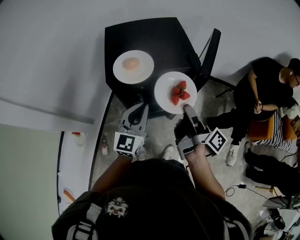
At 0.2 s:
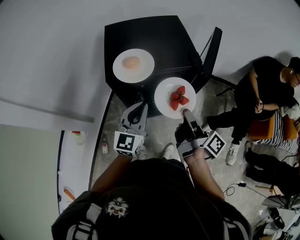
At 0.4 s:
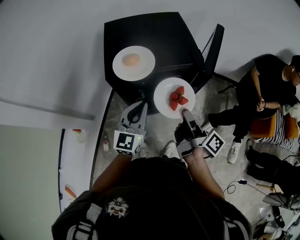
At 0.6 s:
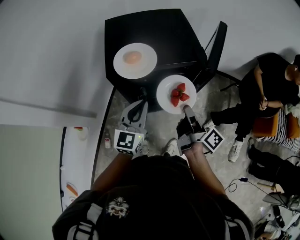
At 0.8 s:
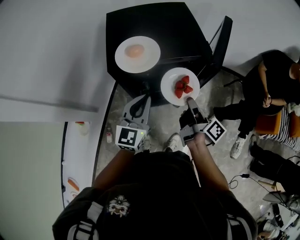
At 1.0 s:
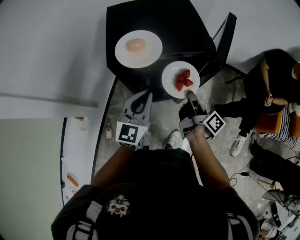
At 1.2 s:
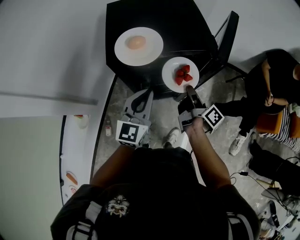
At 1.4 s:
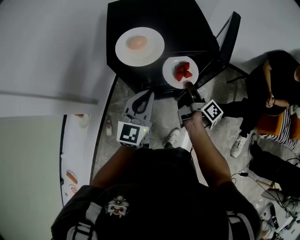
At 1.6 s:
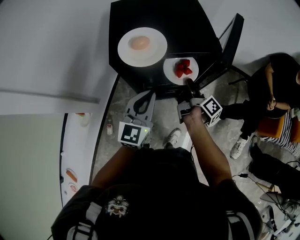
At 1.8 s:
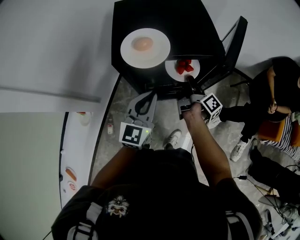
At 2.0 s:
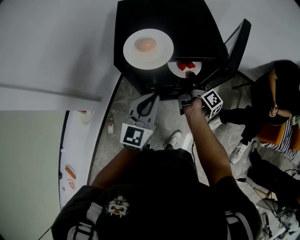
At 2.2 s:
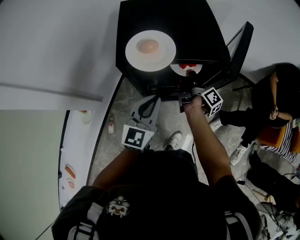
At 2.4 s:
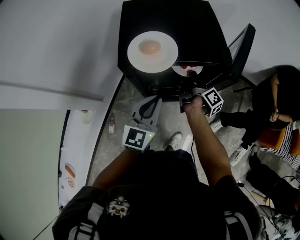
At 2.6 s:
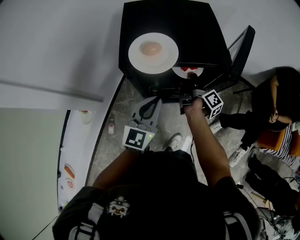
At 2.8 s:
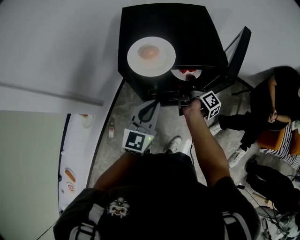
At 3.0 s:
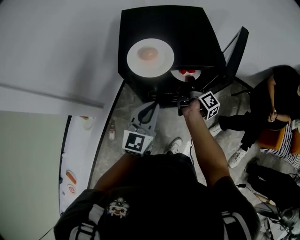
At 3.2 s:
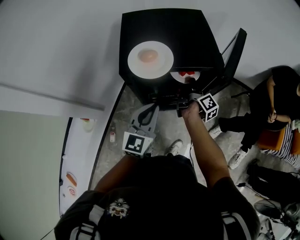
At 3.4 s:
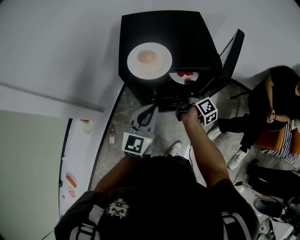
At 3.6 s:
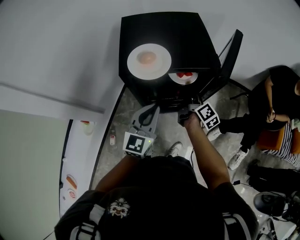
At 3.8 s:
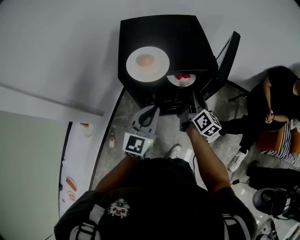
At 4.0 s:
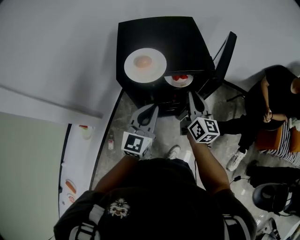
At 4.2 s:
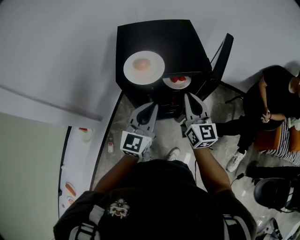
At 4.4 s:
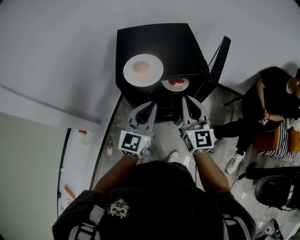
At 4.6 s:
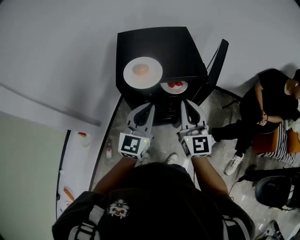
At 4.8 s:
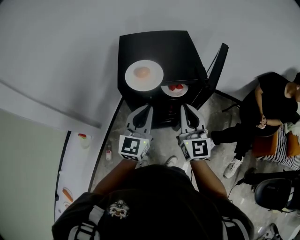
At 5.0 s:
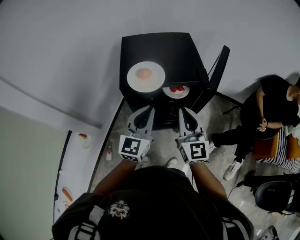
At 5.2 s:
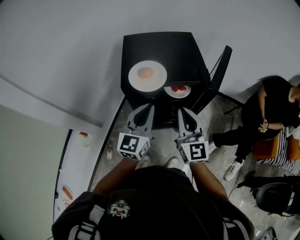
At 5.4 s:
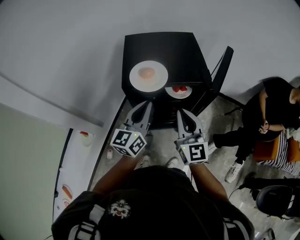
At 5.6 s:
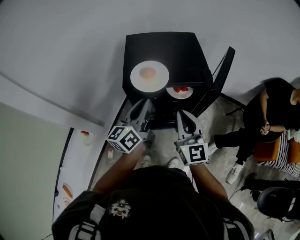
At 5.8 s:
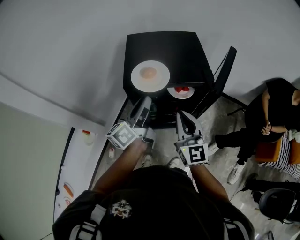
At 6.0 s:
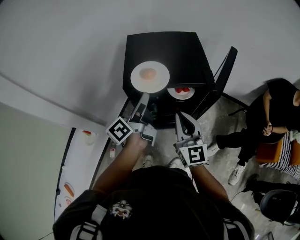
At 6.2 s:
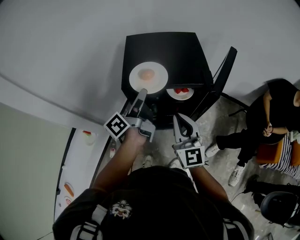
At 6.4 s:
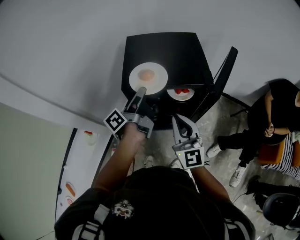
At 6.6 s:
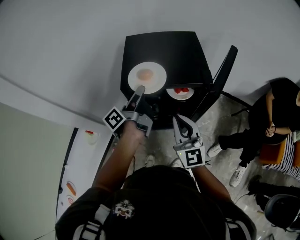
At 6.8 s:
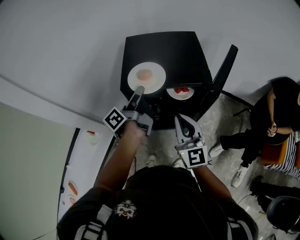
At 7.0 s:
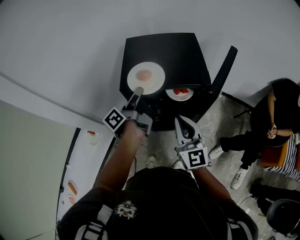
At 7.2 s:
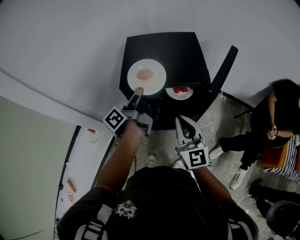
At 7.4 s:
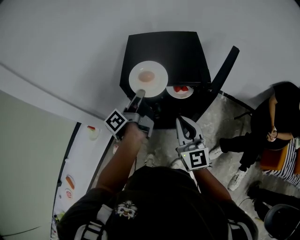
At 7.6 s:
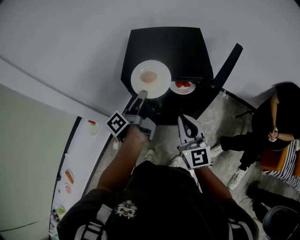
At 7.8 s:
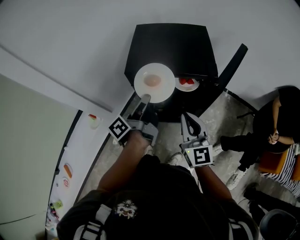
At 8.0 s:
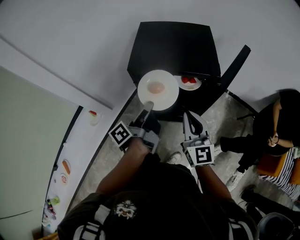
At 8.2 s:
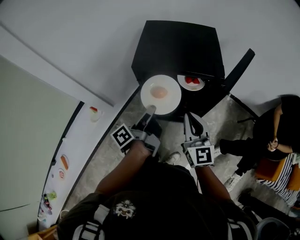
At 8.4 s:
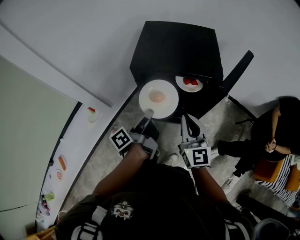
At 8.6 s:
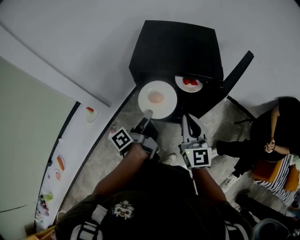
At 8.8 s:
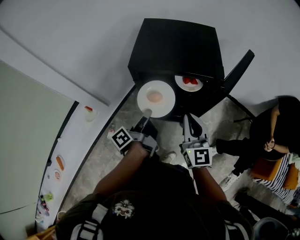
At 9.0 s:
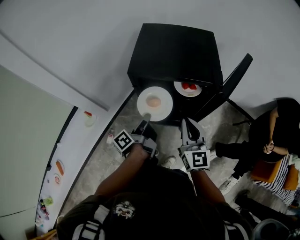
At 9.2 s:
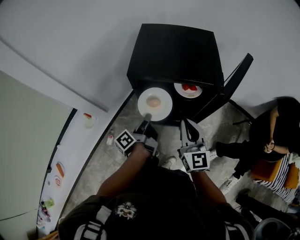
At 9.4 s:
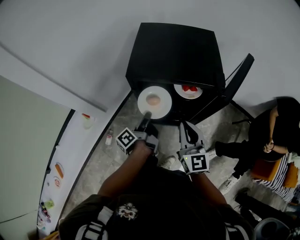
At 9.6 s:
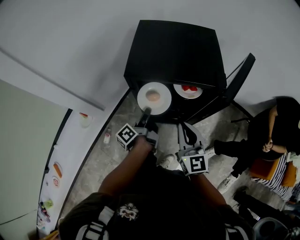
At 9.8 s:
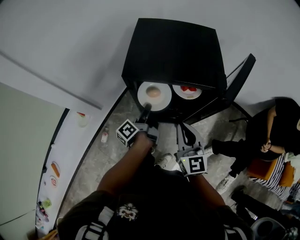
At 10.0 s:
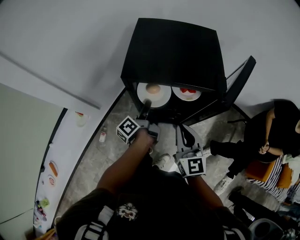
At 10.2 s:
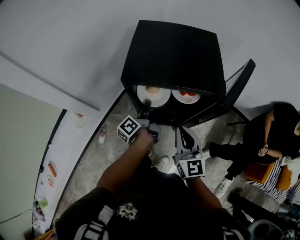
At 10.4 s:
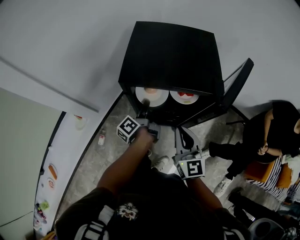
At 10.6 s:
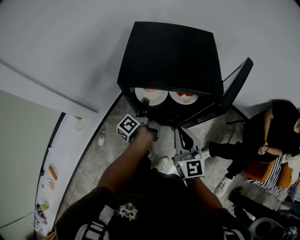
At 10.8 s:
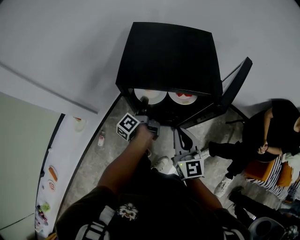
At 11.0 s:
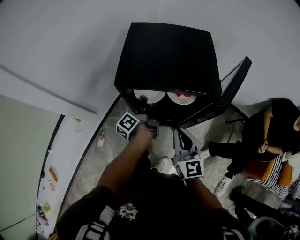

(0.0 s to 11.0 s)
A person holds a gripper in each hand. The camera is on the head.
0.0 s - 1.6 s: The right gripper is displaced downward and forward by roughly 20 cm.
1.6 s - 3.2 s: The right gripper moves forward, some 5 cm.
3.2 s - 4.8 s: The right gripper moves upward and backward, some 25 cm, and rotates around the line of its fingers by roughly 80 degrees, counterclockwise from behind; the left gripper is displaced upward by roughly 5 cm.
4.8 s - 6.2 s: The left gripper heads forward, covering about 5 cm, rolls counterclockwise, seen from behind, by about 70 degrees, and opens its fingers.
6.2 s - 7.8 s: The right gripper moves roughly 5 cm; the left gripper is displaced backward by roughly 5 cm, and closes its fingers.
7.8 s - 9.4 s: The left gripper goes about 15 cm downward; the right gripper travels downward by some 5 cm.
9.4 s - 11.0 s: The left gripper shifts some 10 cm forward.

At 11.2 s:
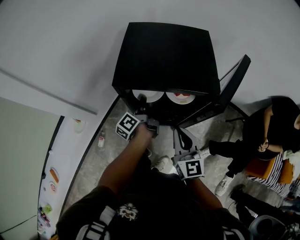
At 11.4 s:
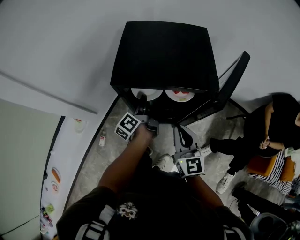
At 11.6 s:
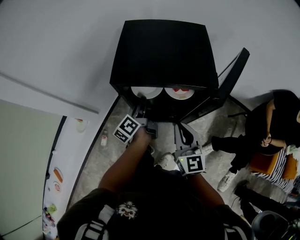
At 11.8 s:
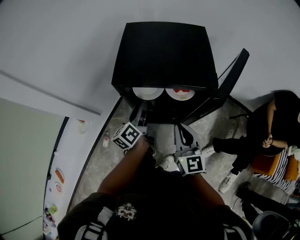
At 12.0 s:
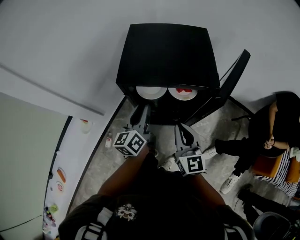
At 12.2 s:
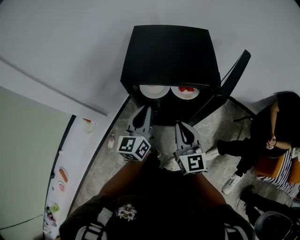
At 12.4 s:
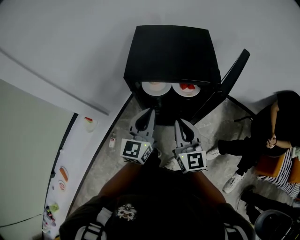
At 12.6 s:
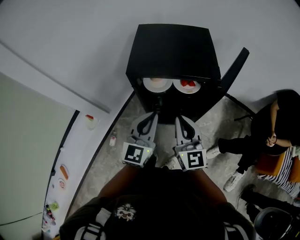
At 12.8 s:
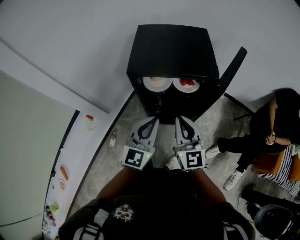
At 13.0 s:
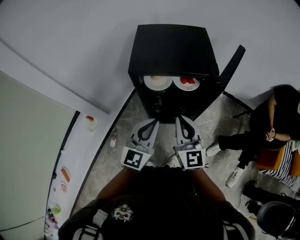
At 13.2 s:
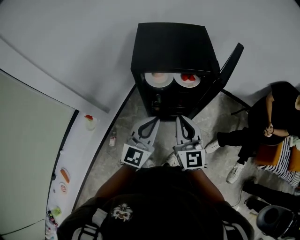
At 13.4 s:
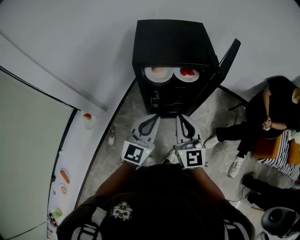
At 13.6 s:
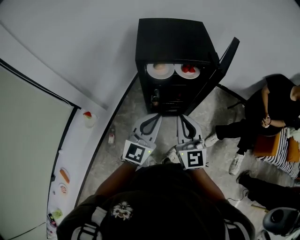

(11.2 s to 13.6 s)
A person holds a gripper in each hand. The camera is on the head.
11.2 s - 12.4 s: The left gripper is displaced upward and backward by roughly 20 cm, twists approximately 70 degrees clockwise, seen from behind, and opens, then closes again, while the right gripper changes place by about 5 cm.
12.4 s - 13.6 s: Both grippers travel together backward, approximately 10 cm. The left gripper rotates some 20 degrees.

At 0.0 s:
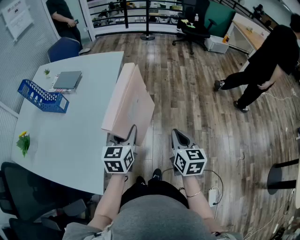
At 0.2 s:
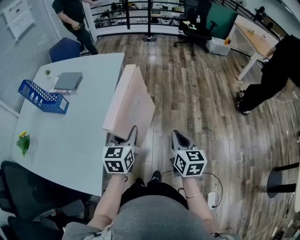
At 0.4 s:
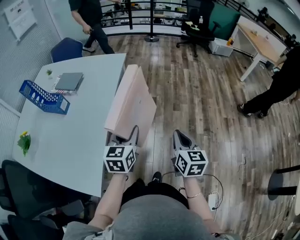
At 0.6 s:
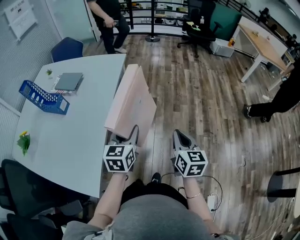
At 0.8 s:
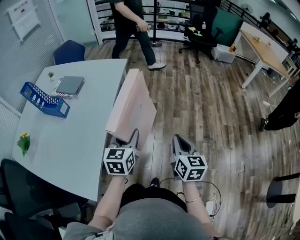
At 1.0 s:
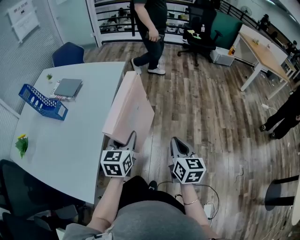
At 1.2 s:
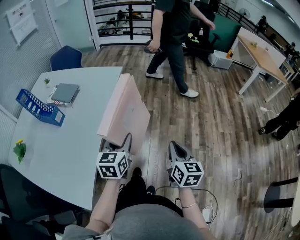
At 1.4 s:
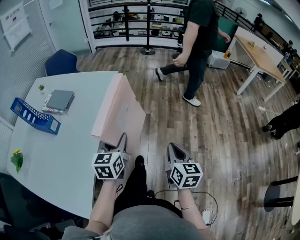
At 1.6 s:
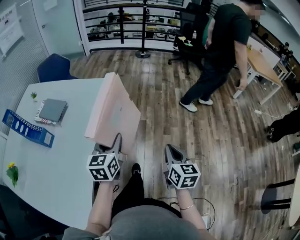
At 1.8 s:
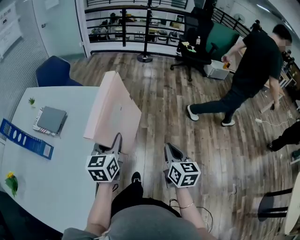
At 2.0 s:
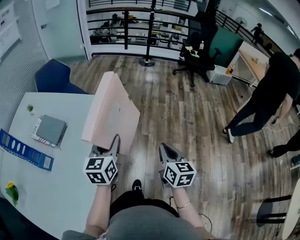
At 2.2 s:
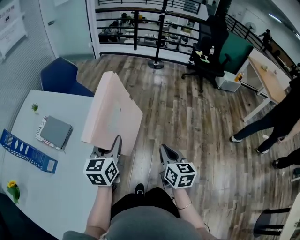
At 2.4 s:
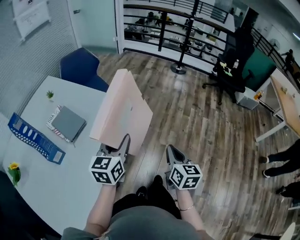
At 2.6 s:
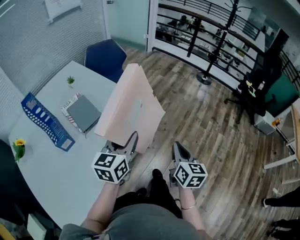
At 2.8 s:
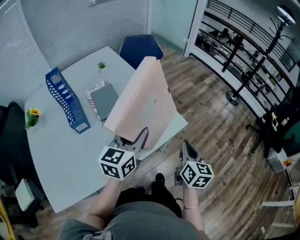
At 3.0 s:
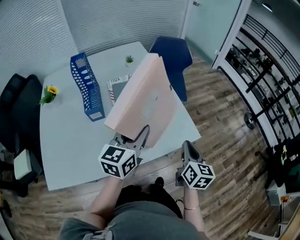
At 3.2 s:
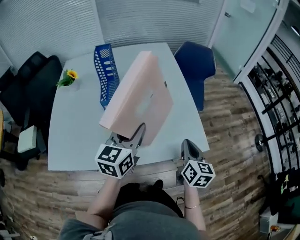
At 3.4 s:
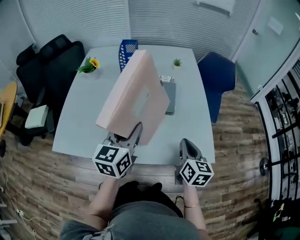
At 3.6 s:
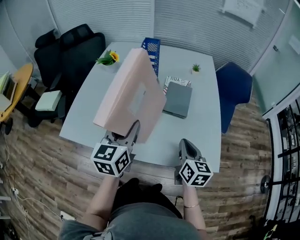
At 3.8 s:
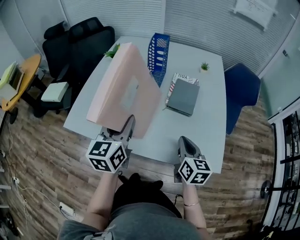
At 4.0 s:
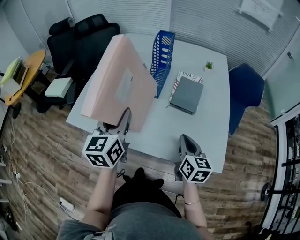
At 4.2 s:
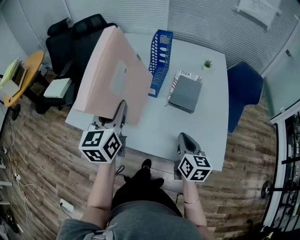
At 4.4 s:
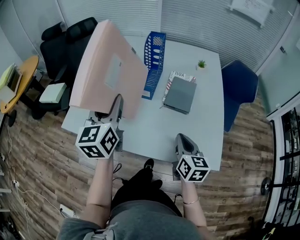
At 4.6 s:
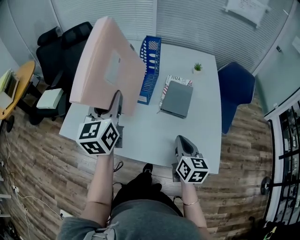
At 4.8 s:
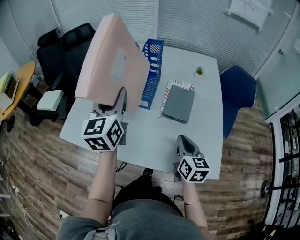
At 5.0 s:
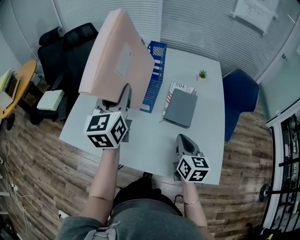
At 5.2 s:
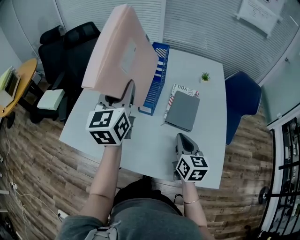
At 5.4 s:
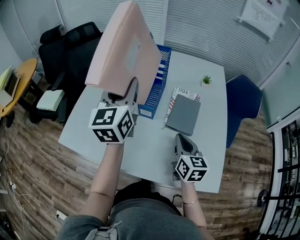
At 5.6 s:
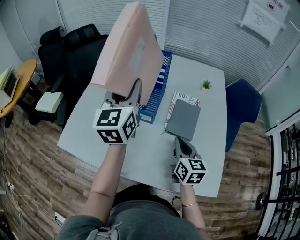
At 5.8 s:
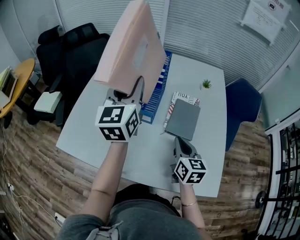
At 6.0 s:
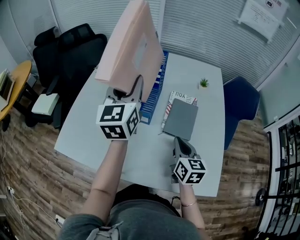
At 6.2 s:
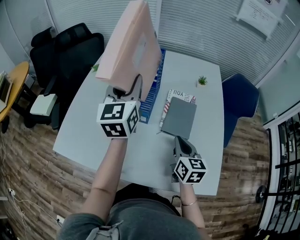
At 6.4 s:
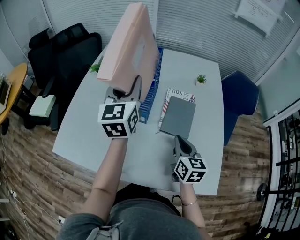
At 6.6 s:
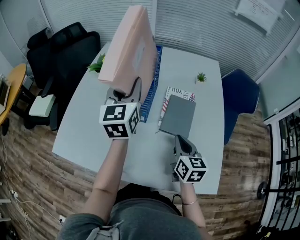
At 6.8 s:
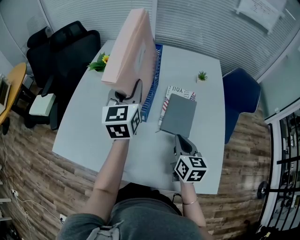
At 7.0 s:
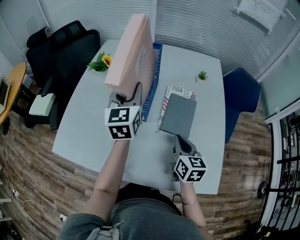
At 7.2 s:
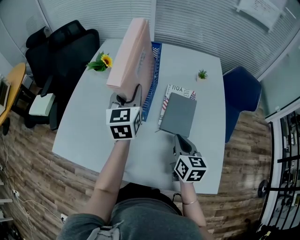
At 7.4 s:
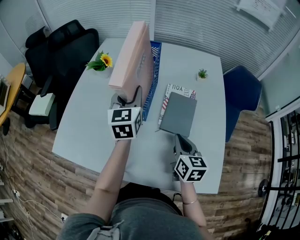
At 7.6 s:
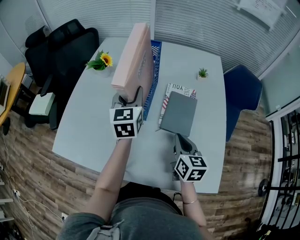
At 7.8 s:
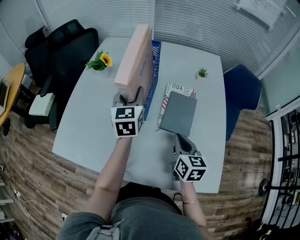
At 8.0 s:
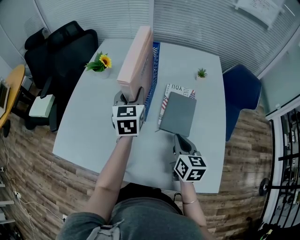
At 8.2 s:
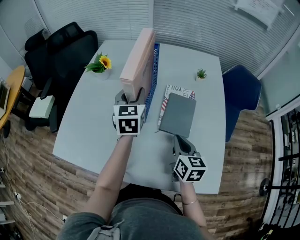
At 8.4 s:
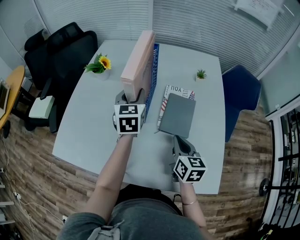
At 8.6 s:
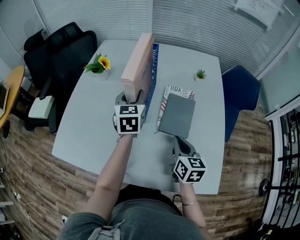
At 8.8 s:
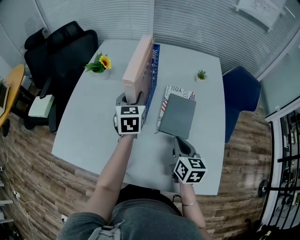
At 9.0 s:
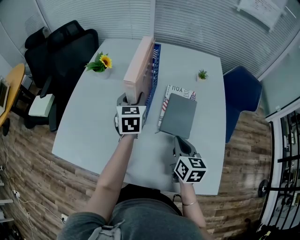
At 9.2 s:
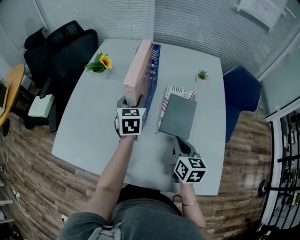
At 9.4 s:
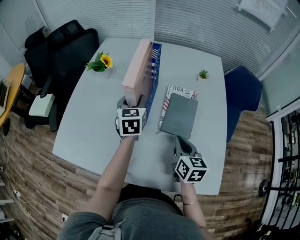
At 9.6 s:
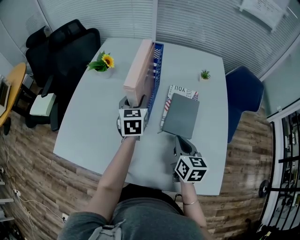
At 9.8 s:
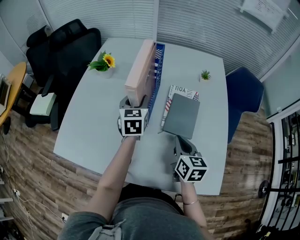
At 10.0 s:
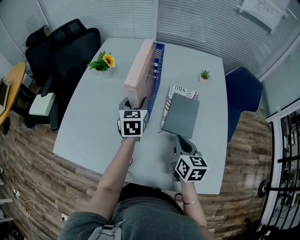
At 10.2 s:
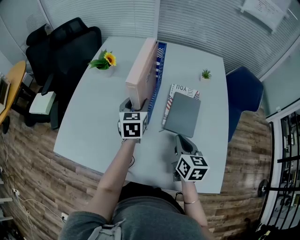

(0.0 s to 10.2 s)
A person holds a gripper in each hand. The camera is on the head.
0.0 s - 1.4 s: The two grippers go approximately 10 cm forward.
1.4 s - 3.0 s: The left gripper changes place by about 35 cm, and rotates roughly 50 degrees. The right gripper changes place by roughly 50 cm, and turns by some 50 degrees.
3.0 s - 4.4 s: The right gripper changes place by about 20 cm, and changes its angle by some 40 degrees; the left gripper ends up some 25 cm from where it was, and swivels roughly 60 degrees.
4.4 s - 5.8 s: Both grippers move forward, about 15 cm.
5.8 s - 7.2 s: The left gripper shifts about 10 cm downward.
7.2 s - 8.8 s: The left gripper goes about 5 cm downward.
8.8 s - 10.2 s: The grippers make only small movements.
